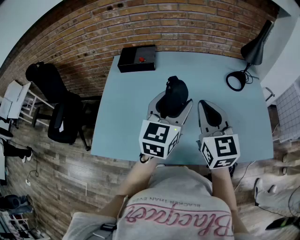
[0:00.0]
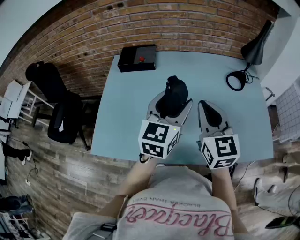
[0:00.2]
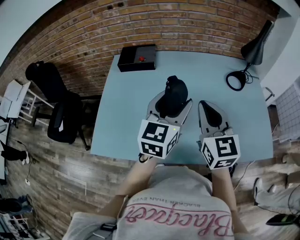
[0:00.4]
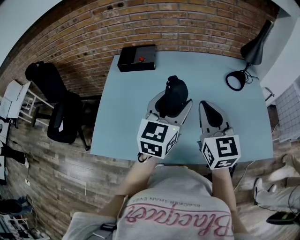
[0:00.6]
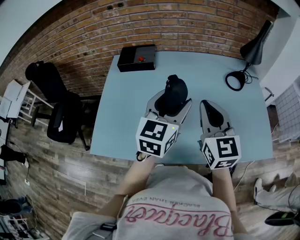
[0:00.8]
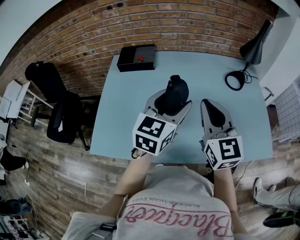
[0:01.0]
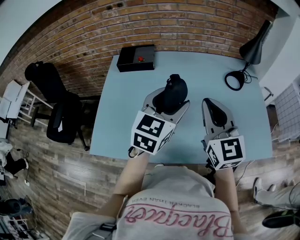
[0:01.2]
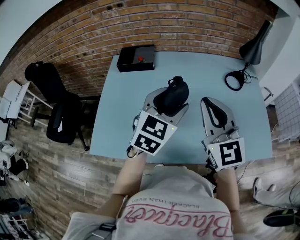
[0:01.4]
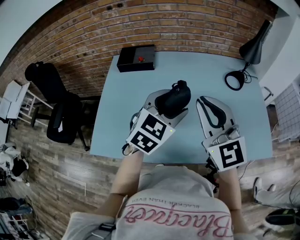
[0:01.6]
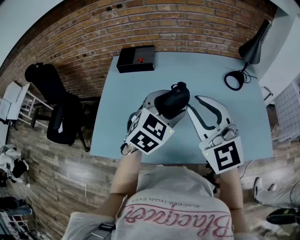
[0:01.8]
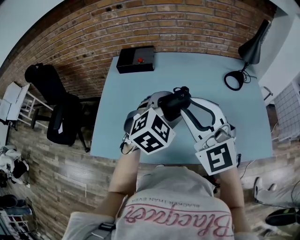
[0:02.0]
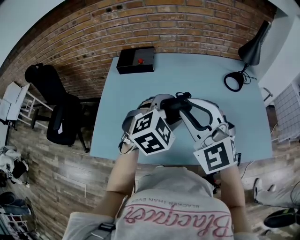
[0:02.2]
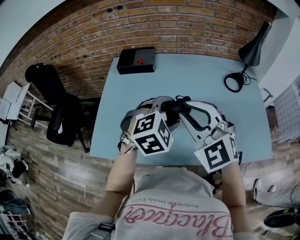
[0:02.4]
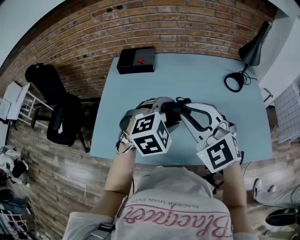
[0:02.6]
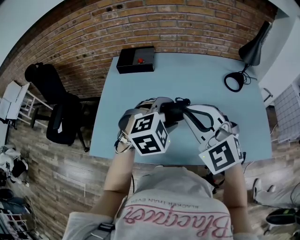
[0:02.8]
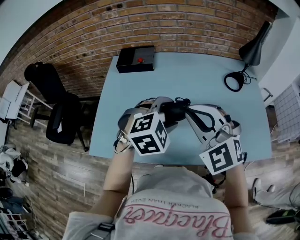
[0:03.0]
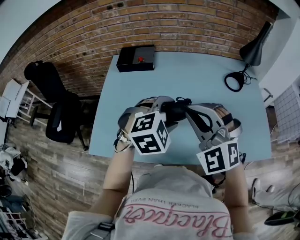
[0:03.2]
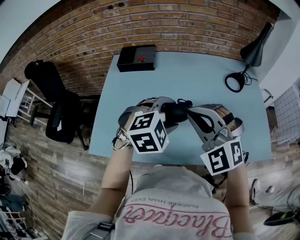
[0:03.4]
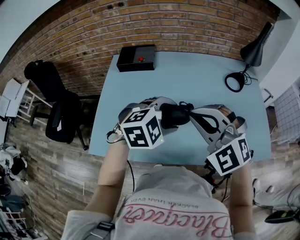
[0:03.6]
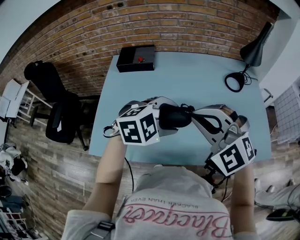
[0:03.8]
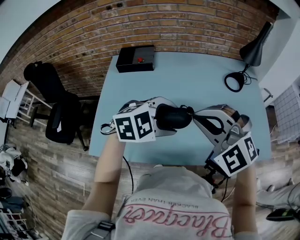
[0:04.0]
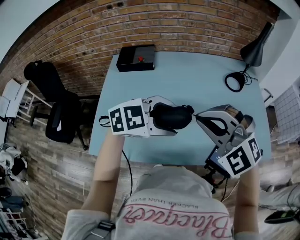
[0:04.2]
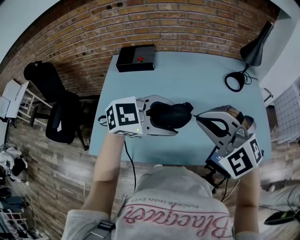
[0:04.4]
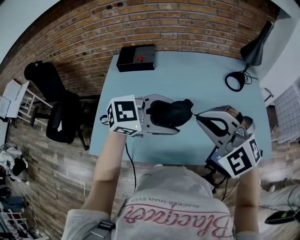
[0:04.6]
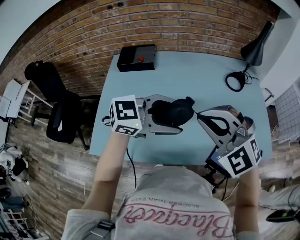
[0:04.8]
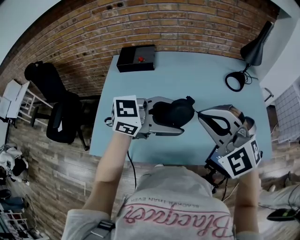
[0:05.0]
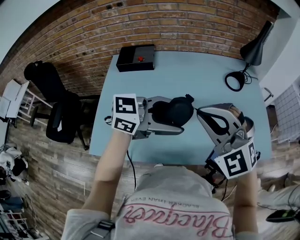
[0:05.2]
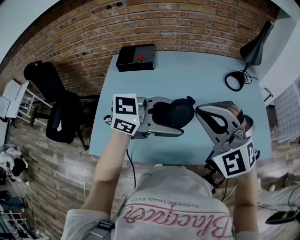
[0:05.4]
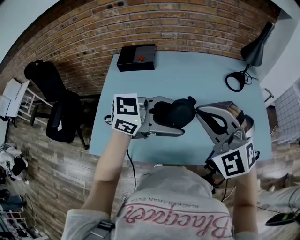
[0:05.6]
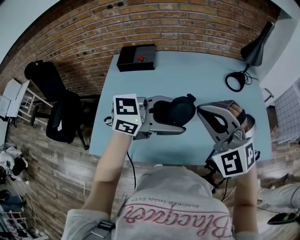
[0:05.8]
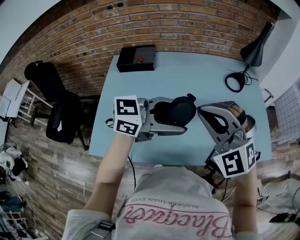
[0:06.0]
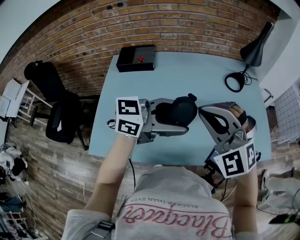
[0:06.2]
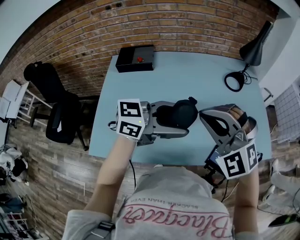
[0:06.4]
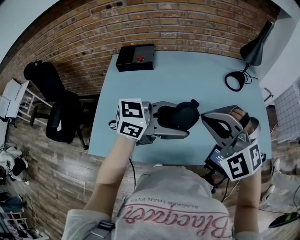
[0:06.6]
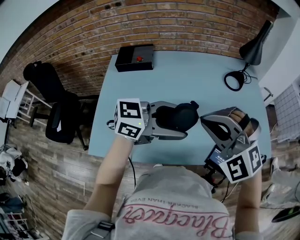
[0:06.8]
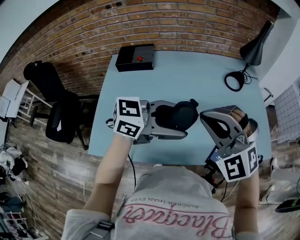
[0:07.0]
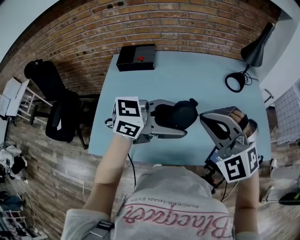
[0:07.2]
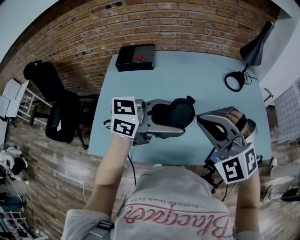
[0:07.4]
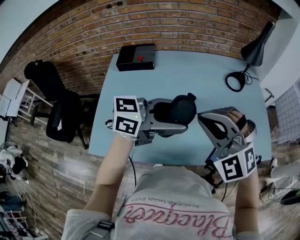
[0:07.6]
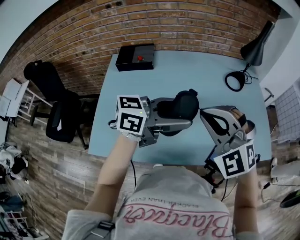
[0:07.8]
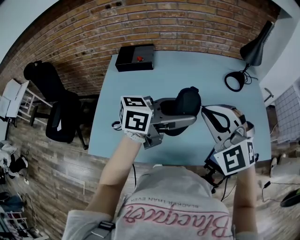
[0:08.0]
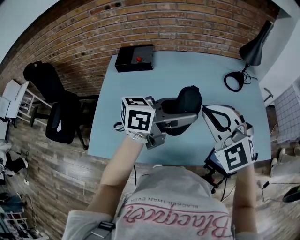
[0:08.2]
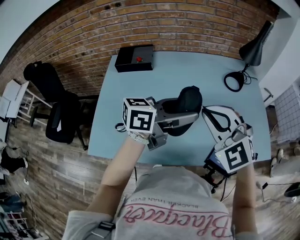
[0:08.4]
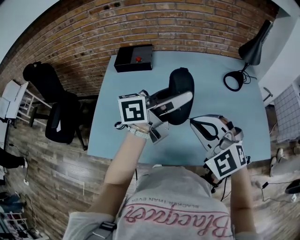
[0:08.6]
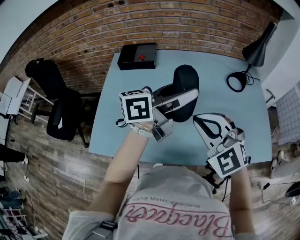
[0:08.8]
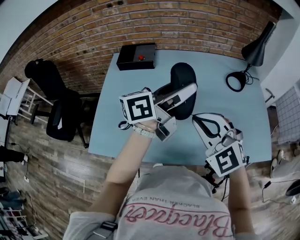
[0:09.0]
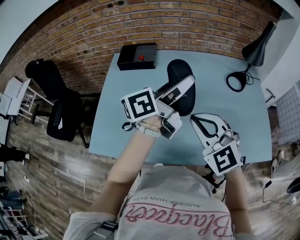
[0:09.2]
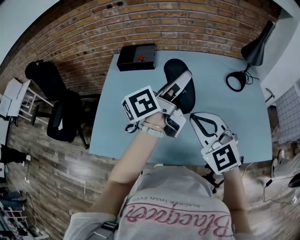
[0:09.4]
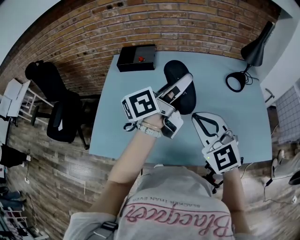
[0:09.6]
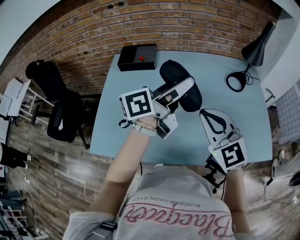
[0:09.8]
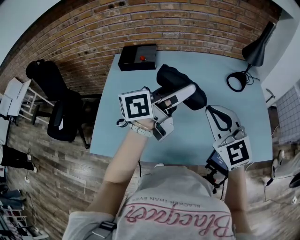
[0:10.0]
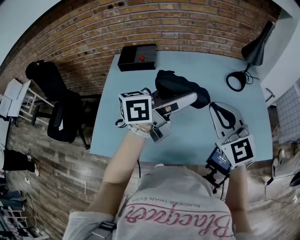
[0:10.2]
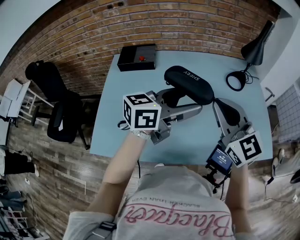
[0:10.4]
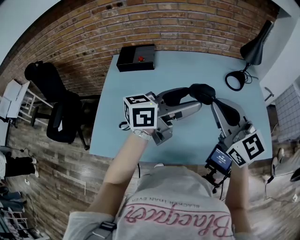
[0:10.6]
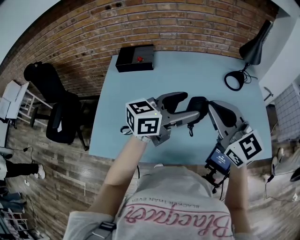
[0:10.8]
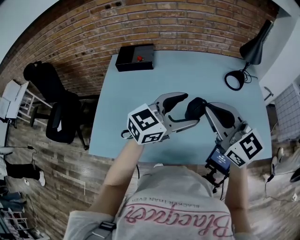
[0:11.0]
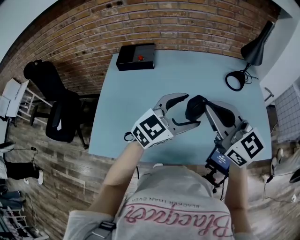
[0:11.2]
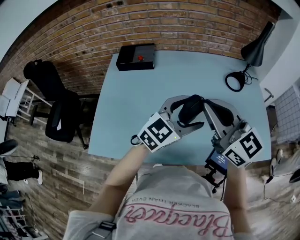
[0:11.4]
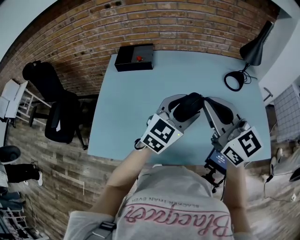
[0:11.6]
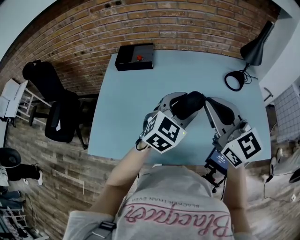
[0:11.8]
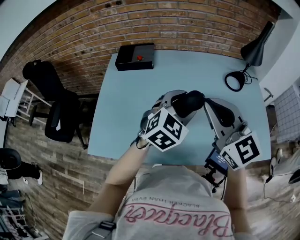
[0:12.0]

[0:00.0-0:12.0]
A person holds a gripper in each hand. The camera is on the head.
0:00.0 to 0:01.6: The left gripper swivels roughly 30 degrees. Meanwhile the right gripper heads upward, covering some 5 cm, and turns by roughly 20 degrees.
0:01.6 to 0:03.0: The right gripper moves approximately 5 cm, and rotates approximately 30 degrees, while the left gripper changes place by roughly 5 cm, and swivels about 40 degrees.
0:03.0 to 0:04.4: The left gripper shifts by some 5 cm, and rotates about 40 degrees.
0:04.4 to 0:06.0: The left gripper rotates approximately 30 degrees.
0:06.0 to 0:07.6: The grippers make only small movements.
0:07.6 to 0:09.0: The right gripper changes its angle by some 20 degrees. Meanwhile the left gripper shifts approximately 10 cm forward, and rotates about 40 degrees.
0:09.0 to 0:10.4: The right gripper shifts about 5 cm to the right, and turns by approximately 30 degrees; the left gripper ends up roughly 5 cm from where it was, and swivels about 20 degrees.
0:10.4 to 0:12.0: The left gripper travels downward by approximately 5 cm, and changes its angle by about 60 degrees.

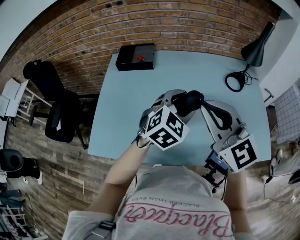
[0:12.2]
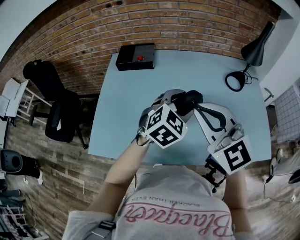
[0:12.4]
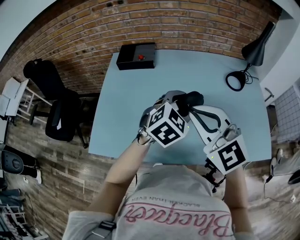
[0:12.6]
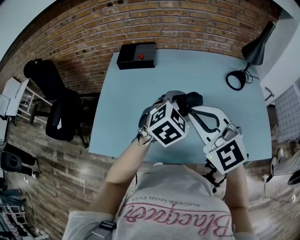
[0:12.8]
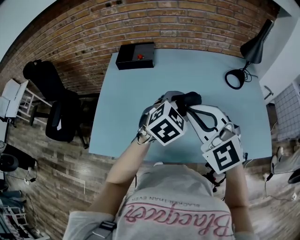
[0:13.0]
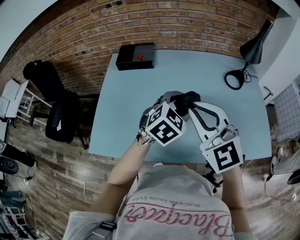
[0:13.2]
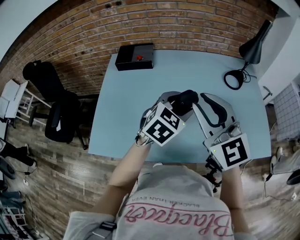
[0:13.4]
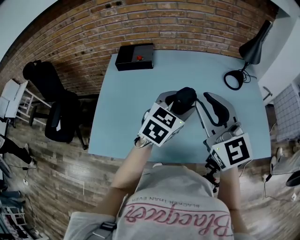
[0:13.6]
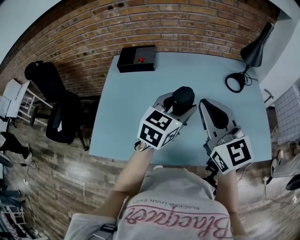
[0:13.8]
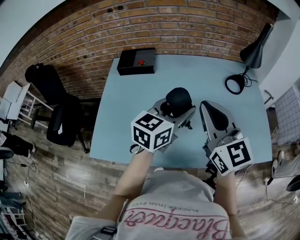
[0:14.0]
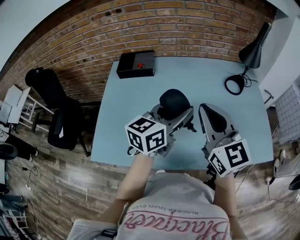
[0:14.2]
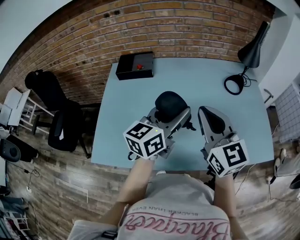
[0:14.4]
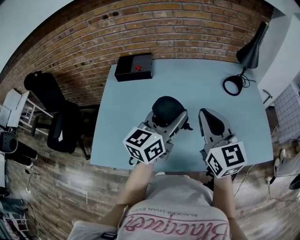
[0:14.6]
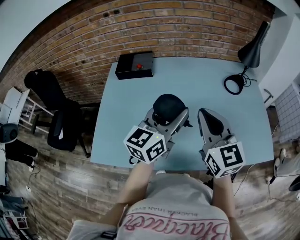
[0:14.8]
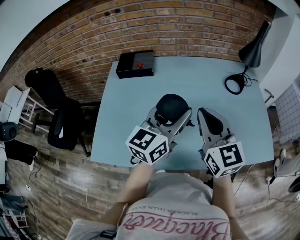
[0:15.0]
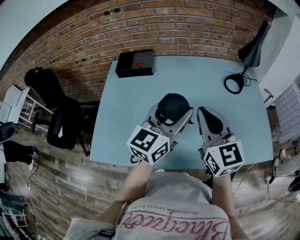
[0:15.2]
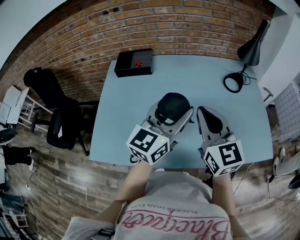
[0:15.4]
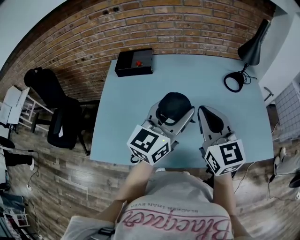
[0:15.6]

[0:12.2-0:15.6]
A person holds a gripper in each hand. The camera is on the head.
0:12.2 to 0:13.8: The left gripper turns by roughly 30 degrees.
0:13.8 to 0:15.6: The left gripper moves approximately 5 cm, and turns by about 20 degrees.

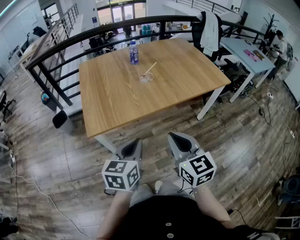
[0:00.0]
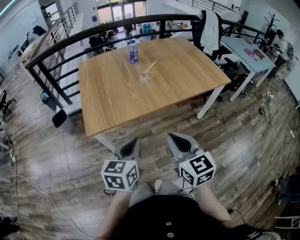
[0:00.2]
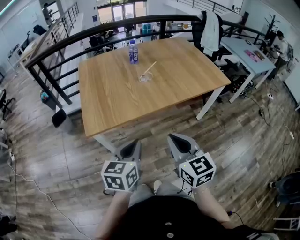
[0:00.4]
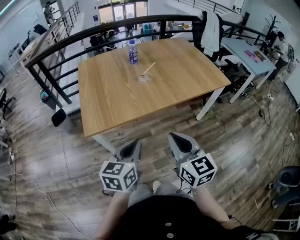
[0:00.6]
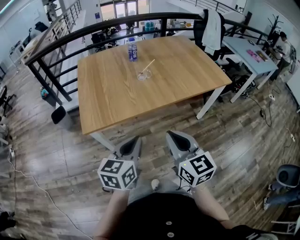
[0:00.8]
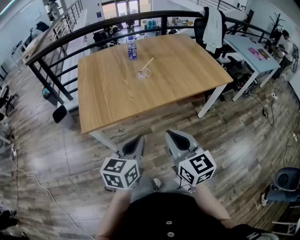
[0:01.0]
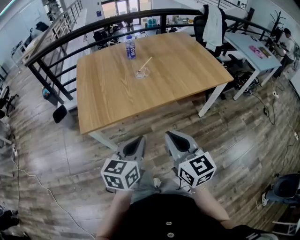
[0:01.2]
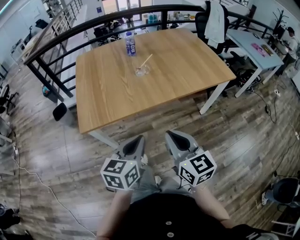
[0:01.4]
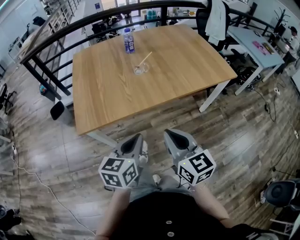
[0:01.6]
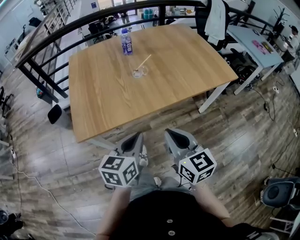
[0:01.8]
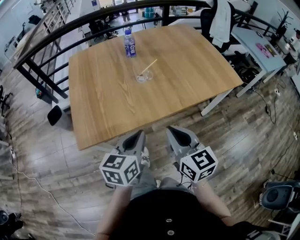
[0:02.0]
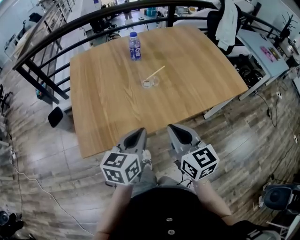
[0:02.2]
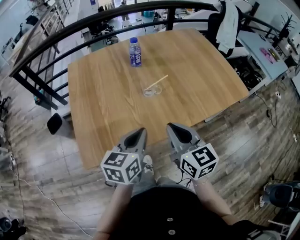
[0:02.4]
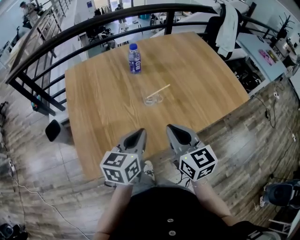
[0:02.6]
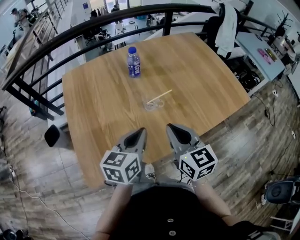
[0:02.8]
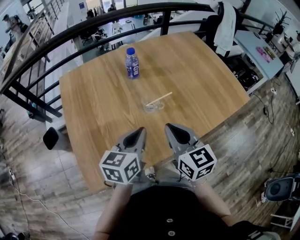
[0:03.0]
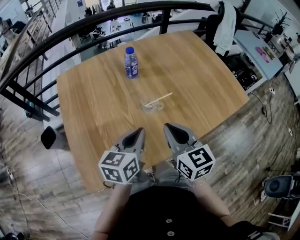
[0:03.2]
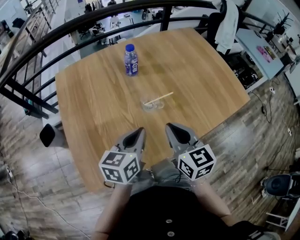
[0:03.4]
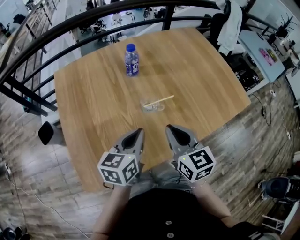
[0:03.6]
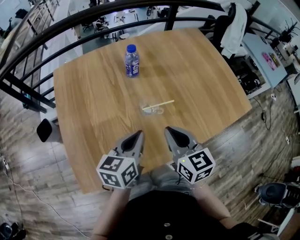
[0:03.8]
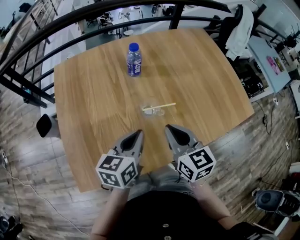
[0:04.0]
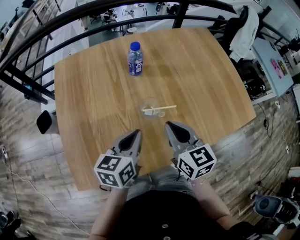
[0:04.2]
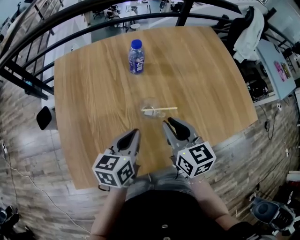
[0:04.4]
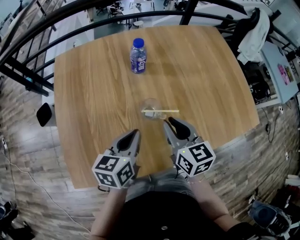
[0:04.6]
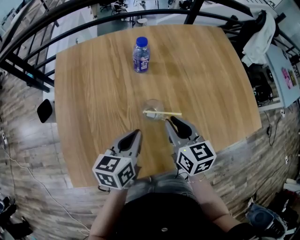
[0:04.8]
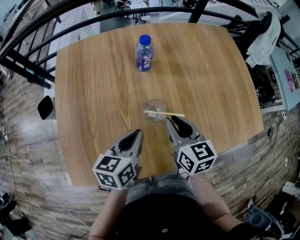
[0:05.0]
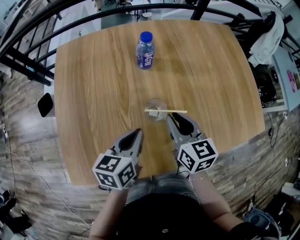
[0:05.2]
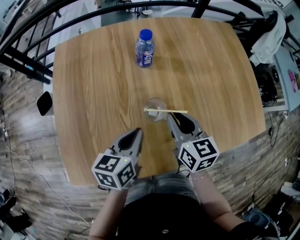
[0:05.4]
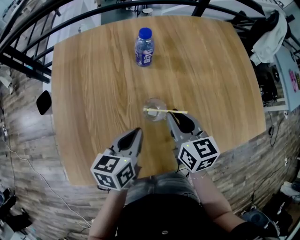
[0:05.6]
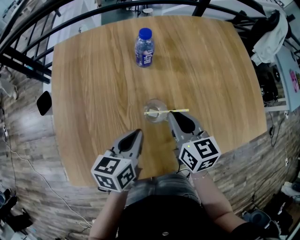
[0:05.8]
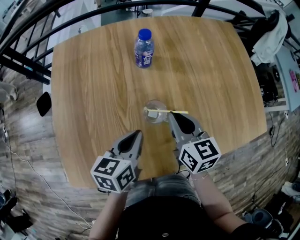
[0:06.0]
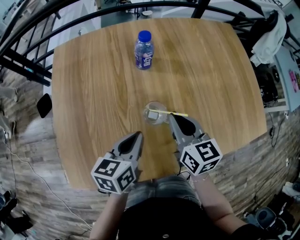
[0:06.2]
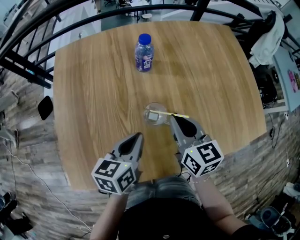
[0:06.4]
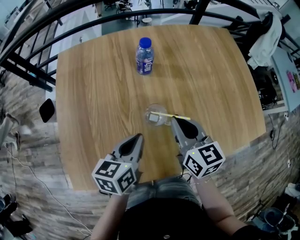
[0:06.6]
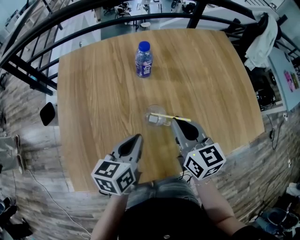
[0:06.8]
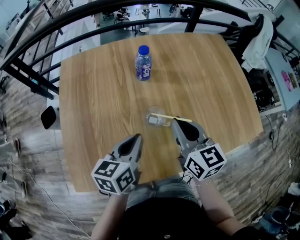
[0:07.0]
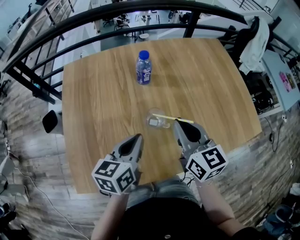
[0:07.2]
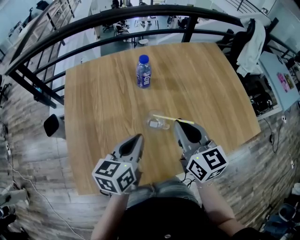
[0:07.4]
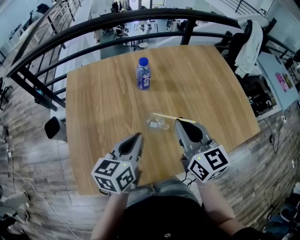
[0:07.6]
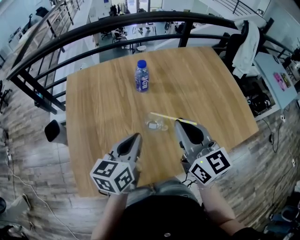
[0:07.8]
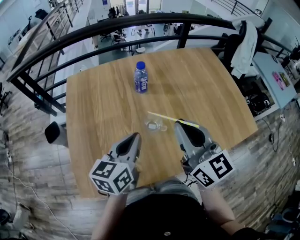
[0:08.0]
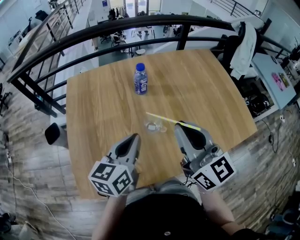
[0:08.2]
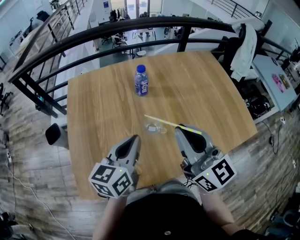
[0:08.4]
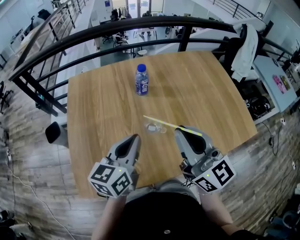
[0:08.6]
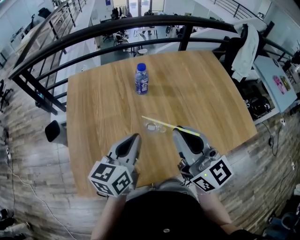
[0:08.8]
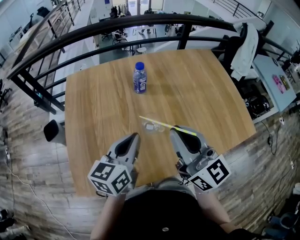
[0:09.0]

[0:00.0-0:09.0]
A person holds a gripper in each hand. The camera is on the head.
0:00.0 to 0:01.6: The right gripper travels forward by roughly 5 cm. Meanwhile the left gripper shifts roughly 10 cm to the right and forward.
0:01.6 to 0:03.0: The grippers both shift forward by approximately 30 cm.
0:03.0 to 0:04.4: The right gripper moves forward and downward, roughly 10 cm. Meanwhile the left gripper is displaced forward by about 5 cm.
0:04.4 to 0:06.0: The right gripper travels forward by some 5 cm. The left gripper moves approximately 5 cm.
0:06.0 to 0:07.6: The right gripper shifts roughly 15 cm upward and backward; the left gripper goes roughly 10 cm upward.
0:07.6 to 0:09.0: The right gripper travels upward by approximately 5 cm.
